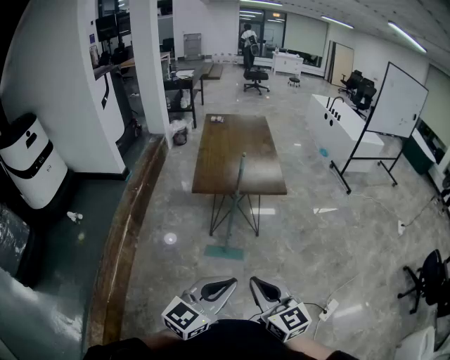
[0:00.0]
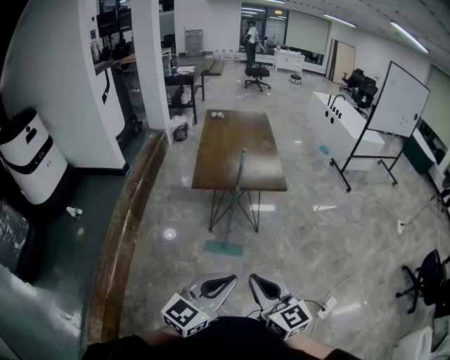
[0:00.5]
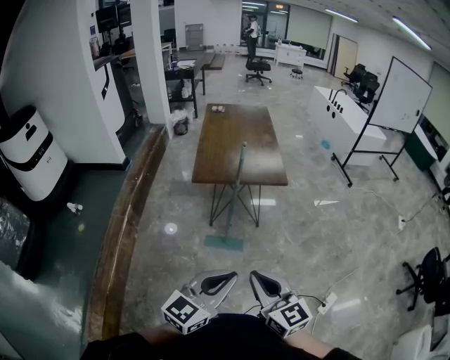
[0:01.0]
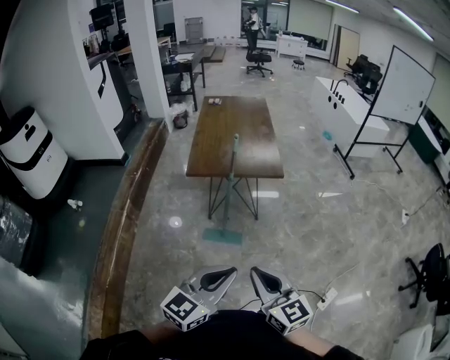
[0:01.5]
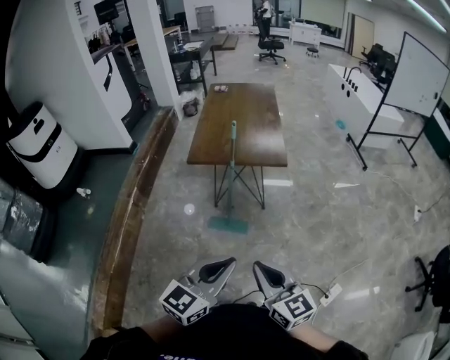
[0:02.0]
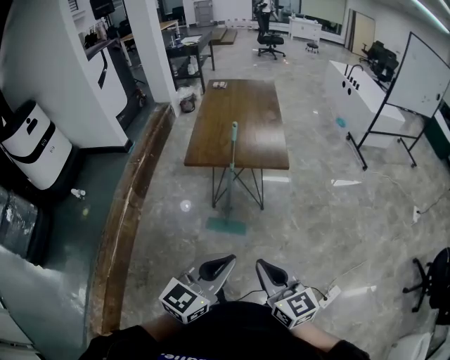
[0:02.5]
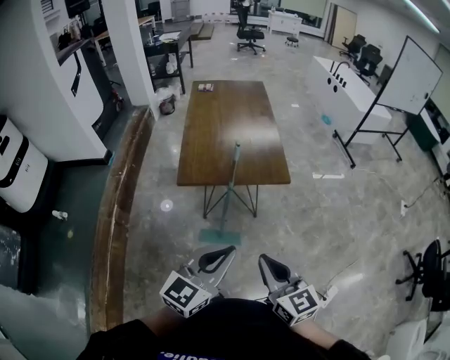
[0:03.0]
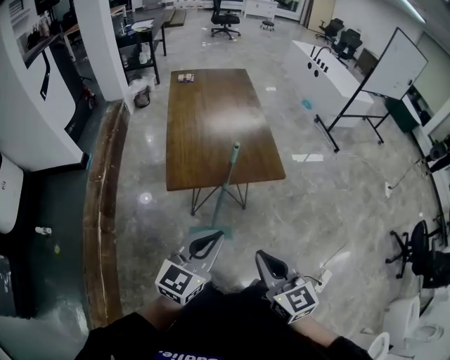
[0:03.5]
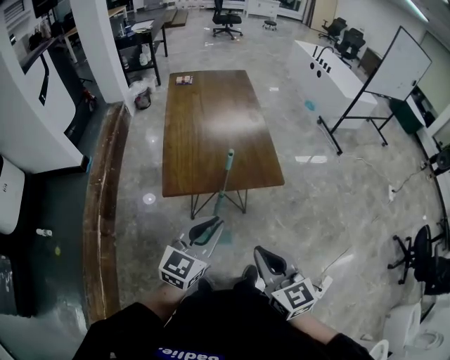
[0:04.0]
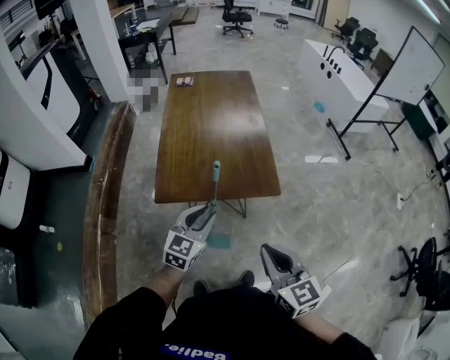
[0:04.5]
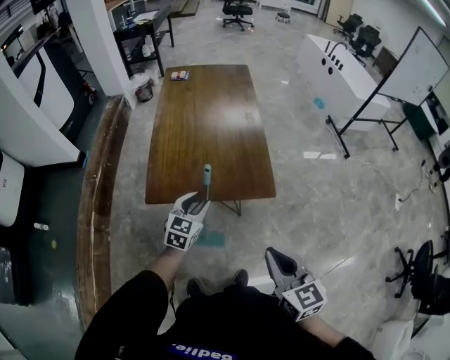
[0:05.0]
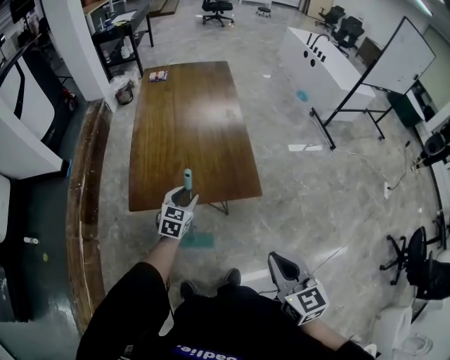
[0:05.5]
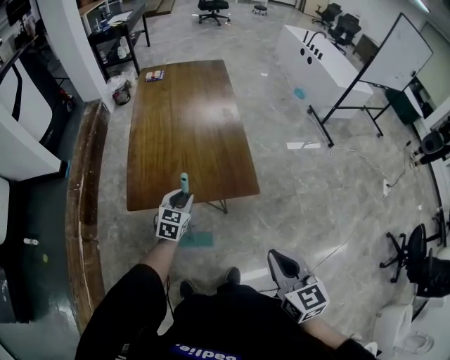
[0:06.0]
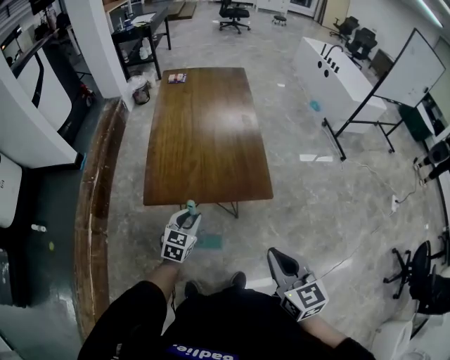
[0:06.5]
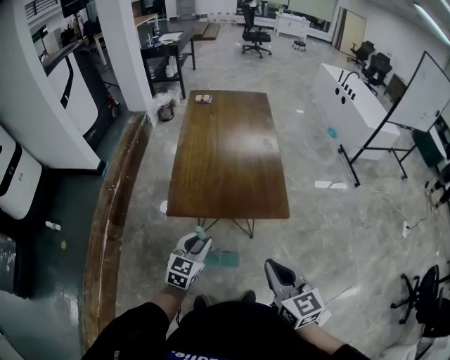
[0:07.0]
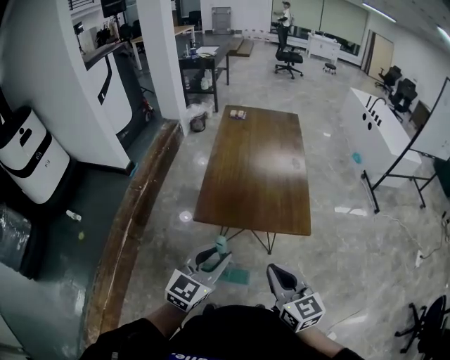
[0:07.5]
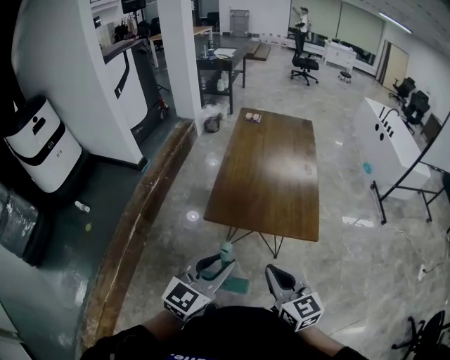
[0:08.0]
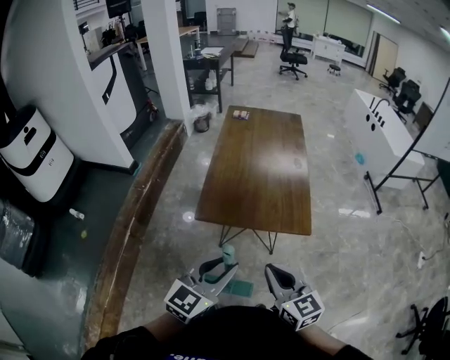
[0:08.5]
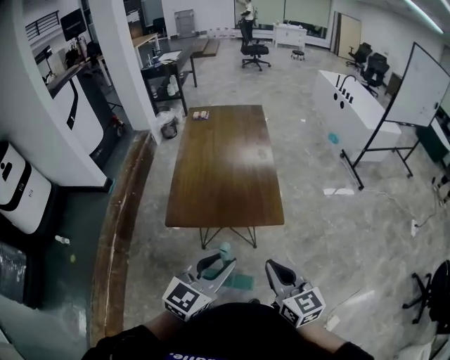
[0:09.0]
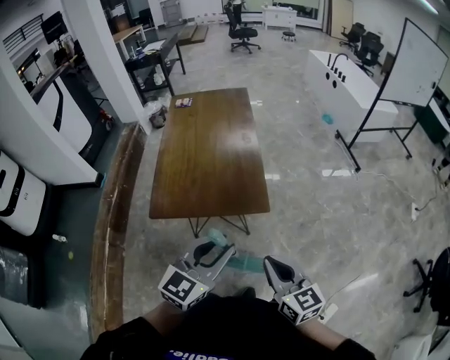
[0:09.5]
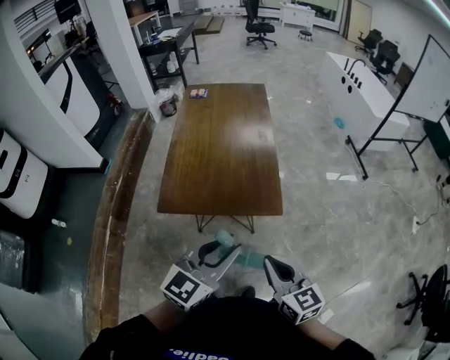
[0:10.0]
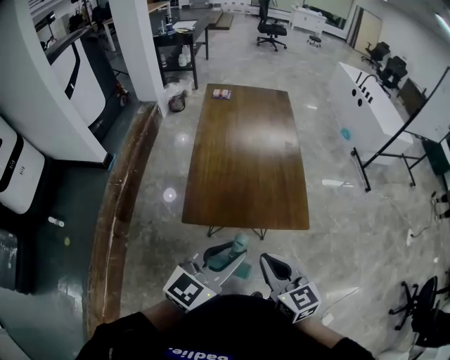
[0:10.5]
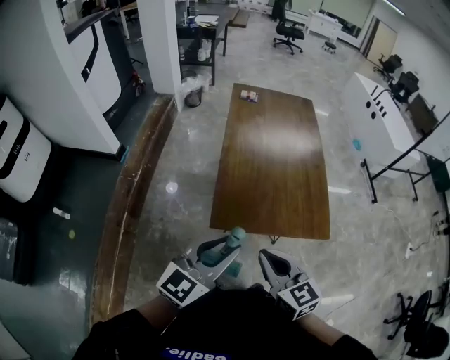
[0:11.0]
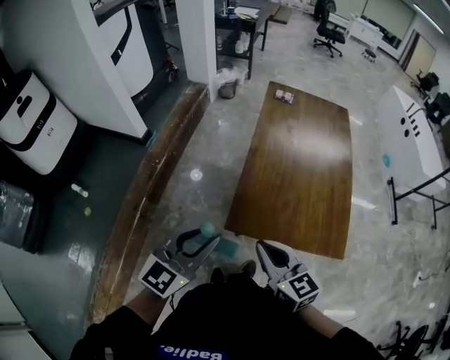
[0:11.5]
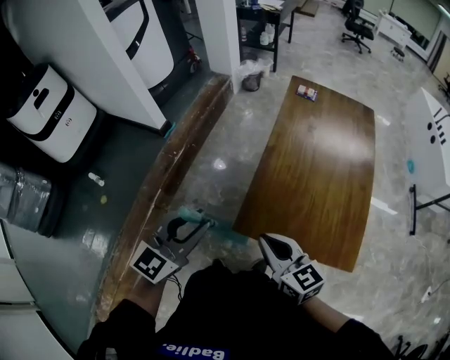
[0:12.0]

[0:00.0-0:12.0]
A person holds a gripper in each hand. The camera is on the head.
0:00.0 to 0:02.0: Both grippers move to the right, some 10 cm.
0:02.0 to 0:04.0: The grippers both shift forward and to the left by approximately 35 cm.
0:04.0 to 0:06.0: The left gripper heads forward and downward, covering about 30 cm, and rotates some 30 degrees; the right gripper travels to the right and forward by roughly 20 cm.
0:06.0 to 0:08.0: The right gripper moves to the left, some 20 cm, and changes its angle by approximately 30 degrees. The left gripper moves upward and backward, about 35 cm, and changes its angle by about 20 degrees.
0:08.0 to 0:10.0: Both grippers travel together to the right, some 15 cm.
0:10.0 to 0:12.0: The two grippers travel together, about 40 cm. The left gripper changes its angle by some 20 degrees. The right gripper changes its angle by some 30 degrees.

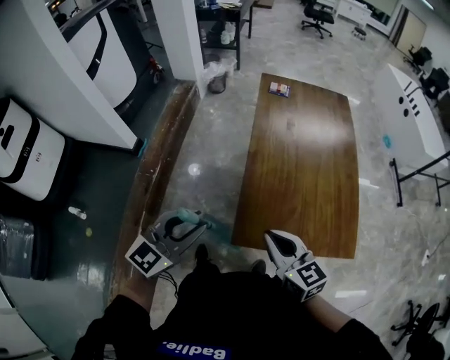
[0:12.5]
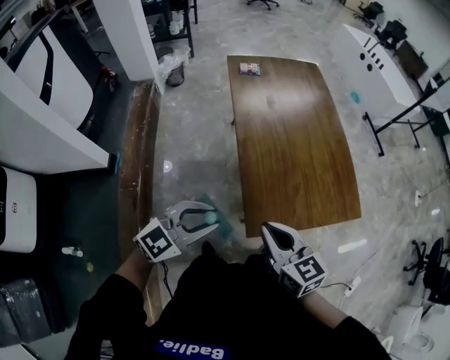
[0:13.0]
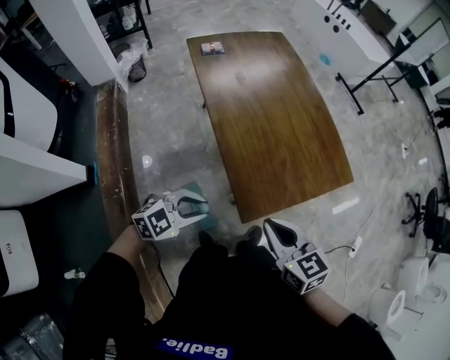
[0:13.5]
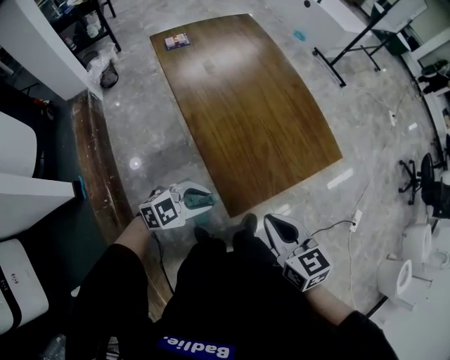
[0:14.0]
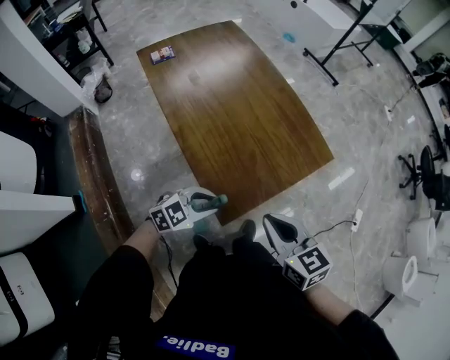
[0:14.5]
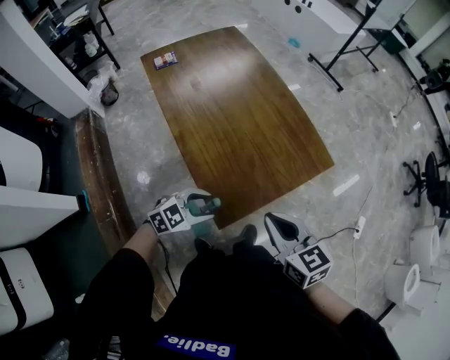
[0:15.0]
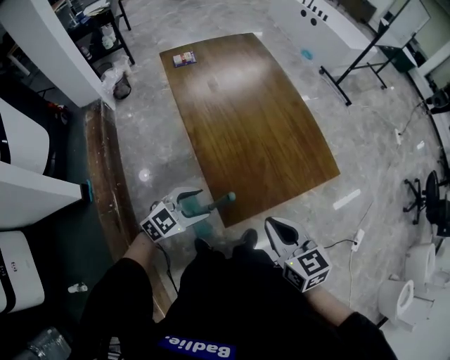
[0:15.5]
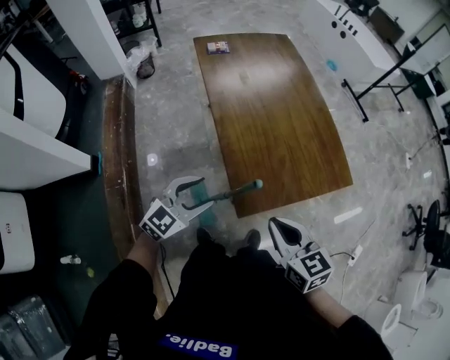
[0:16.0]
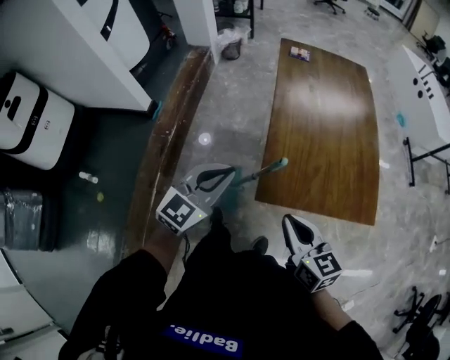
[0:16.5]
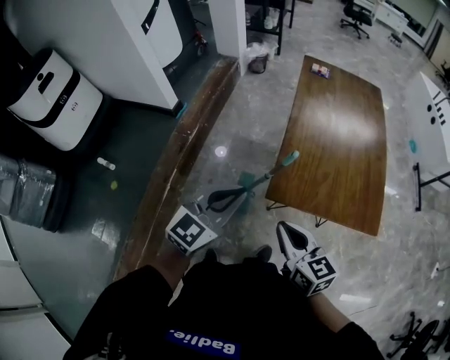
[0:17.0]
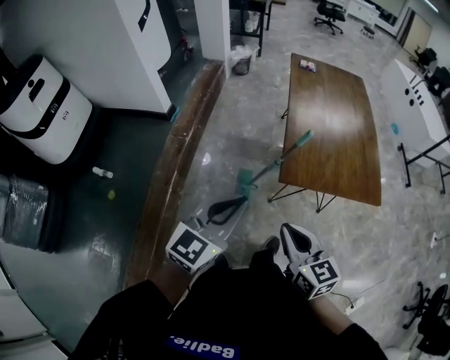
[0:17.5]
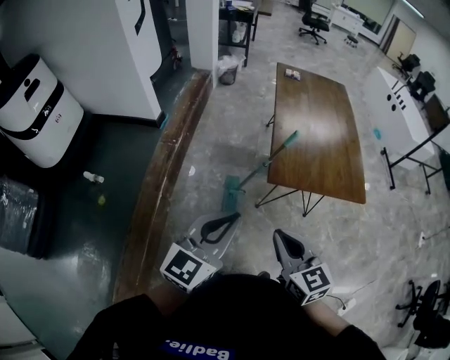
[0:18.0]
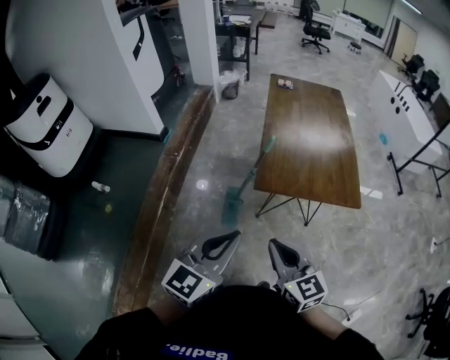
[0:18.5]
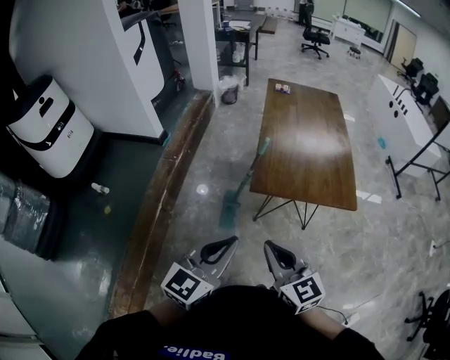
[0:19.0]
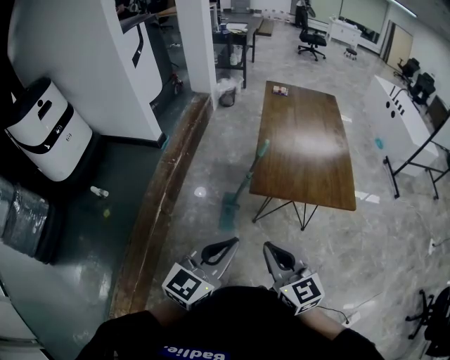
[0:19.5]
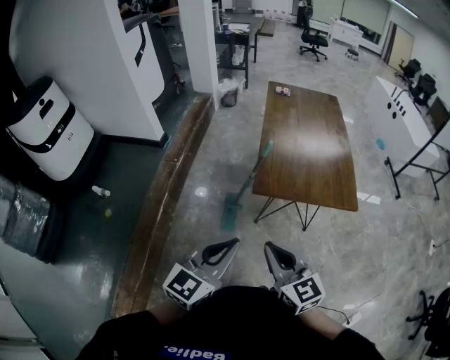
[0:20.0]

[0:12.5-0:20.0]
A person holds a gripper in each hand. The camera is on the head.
0:12.5 to 0:14.5: The right gripper moves roughly 5 cm, and turns by roughly 40 degrees; the left gripper moves downward, some 20 cm, and turns by some 70 degrees.
0:14.5 to 0:16.5: The left gripper moves upward, roughly 15 cm, swivels some 70 degrees, and opens, then closes again. Meanwhile the right gripper turns by roughly 30 degrees.
0:16.5 to 0:18.0: The right gripper goes roughly 25 cm backward and to the left, while the left gripper goes roughly 30 cm backward.
0:18.0 to 0:20.0: The left gripper goes roughly 10 cm to the right and backward; the right gripper goes approximately 10 cm to the right.

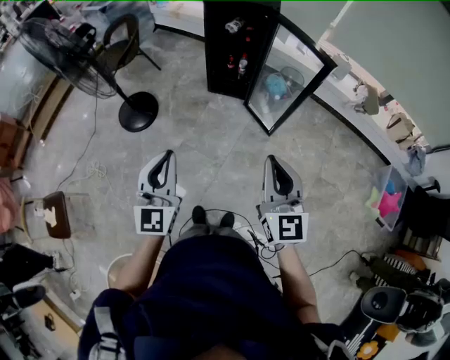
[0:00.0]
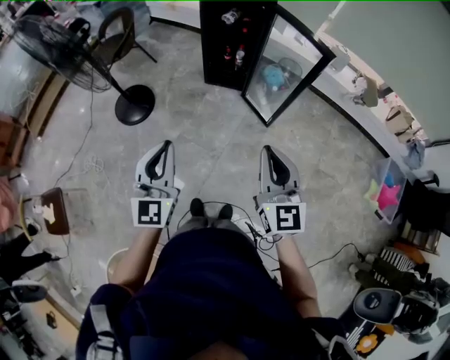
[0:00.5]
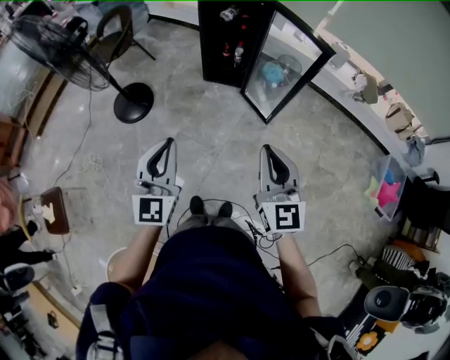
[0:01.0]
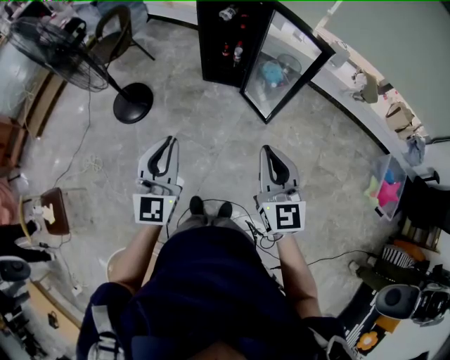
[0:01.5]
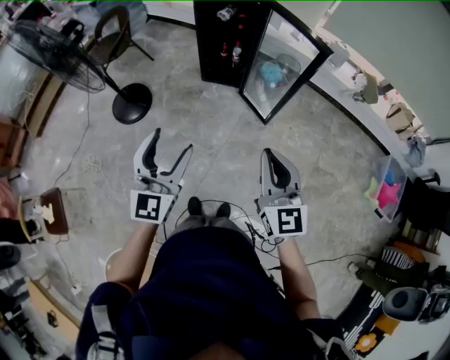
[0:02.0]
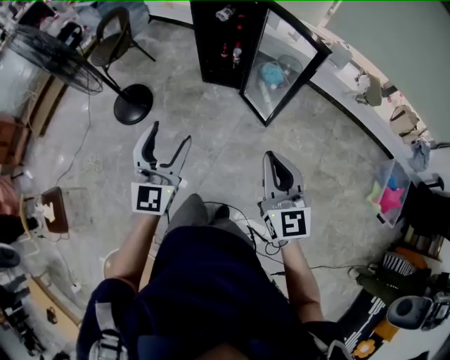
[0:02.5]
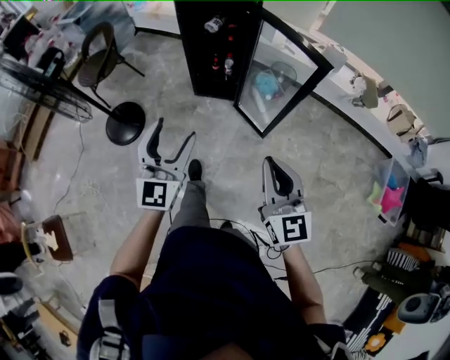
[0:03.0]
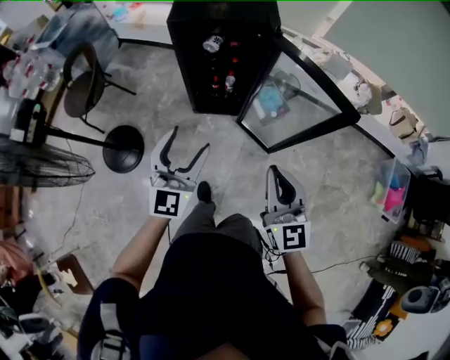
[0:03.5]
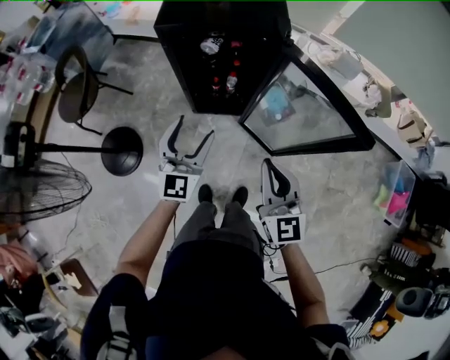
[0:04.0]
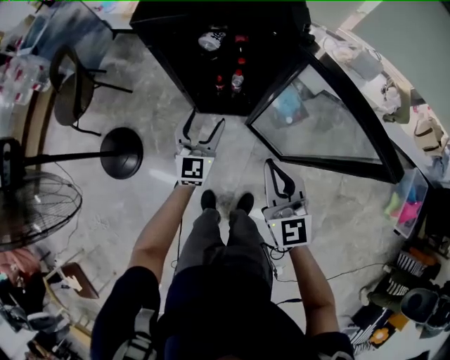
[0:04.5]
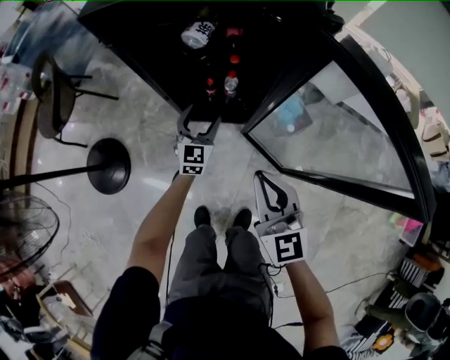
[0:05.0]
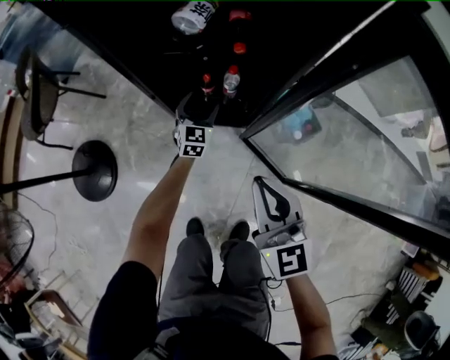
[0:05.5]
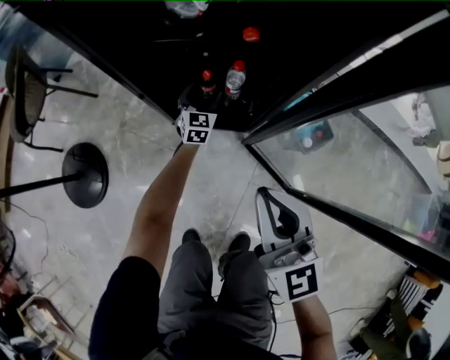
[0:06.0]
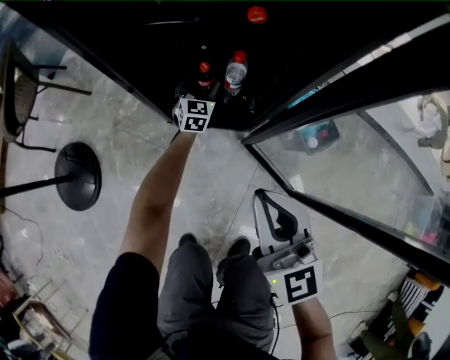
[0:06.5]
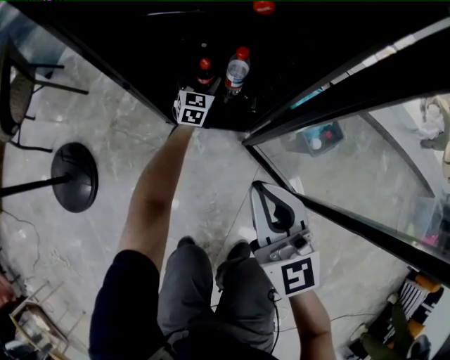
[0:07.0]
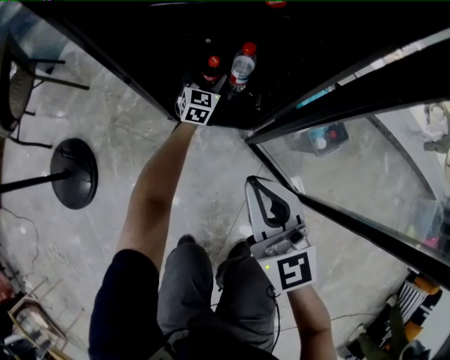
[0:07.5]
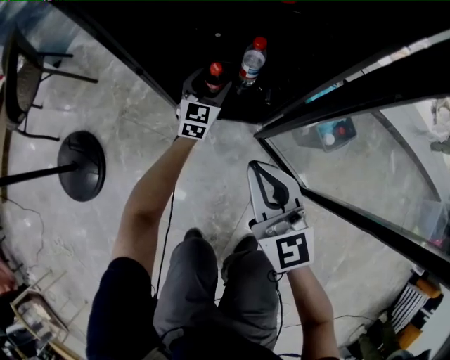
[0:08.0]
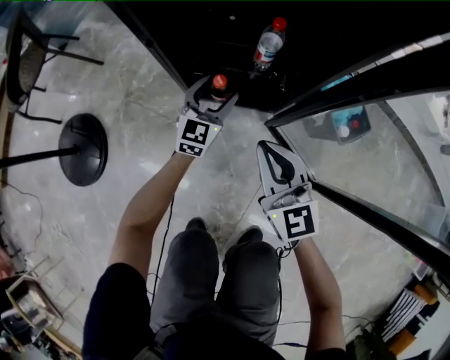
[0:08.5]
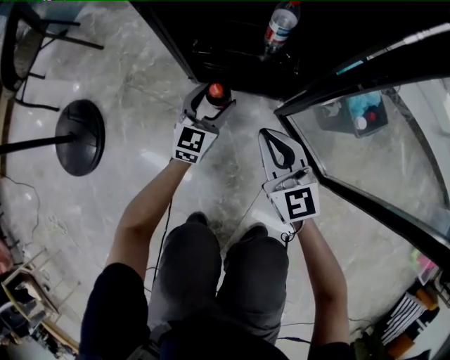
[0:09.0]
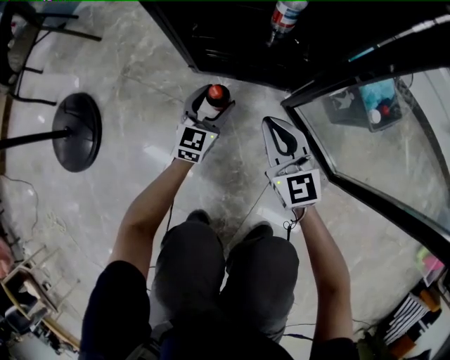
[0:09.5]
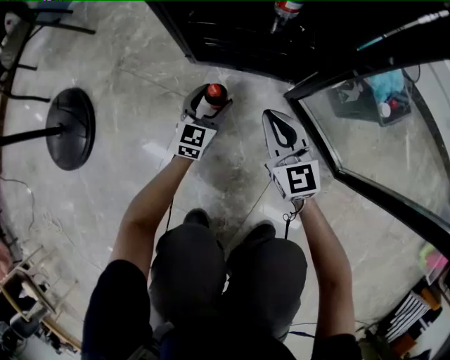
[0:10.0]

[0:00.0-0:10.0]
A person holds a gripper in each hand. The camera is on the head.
0:00.0 to 0:02.0: The left gripper goes roughly 5 cm to the right, and opens its fingers.
0:02.0 to 0:04.0: The two grippers travel together, forward, approximately 50 cm.
0:04.0 to 0:06.0: The left gripper goes approximately 70 cm downward and forward. The right gripper is displaced downward and forward by some 40 cm.
0:06.0 to 0:08.0: The right gripper heads downward, covering some 15 cm.
0:08.0 to 0:10.0: The left gripper is displaced downward and backward by approximately 30 cm. Meanwhile the right gripper is displaced downward by about 30 cm.
